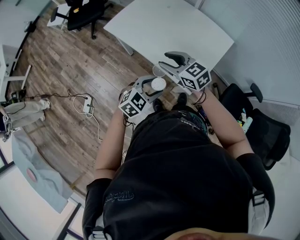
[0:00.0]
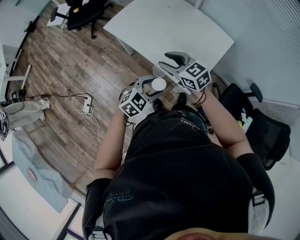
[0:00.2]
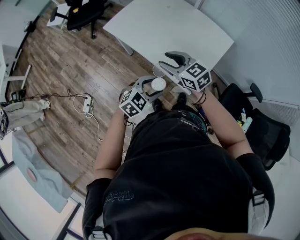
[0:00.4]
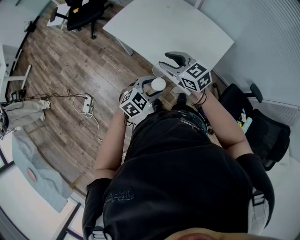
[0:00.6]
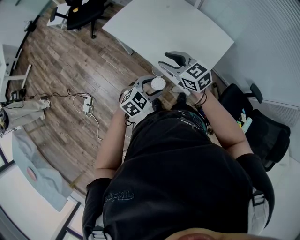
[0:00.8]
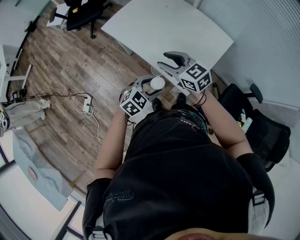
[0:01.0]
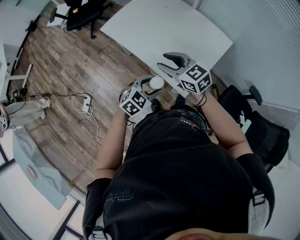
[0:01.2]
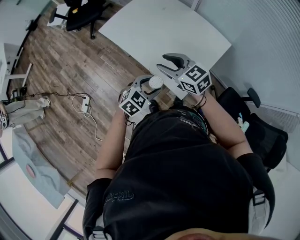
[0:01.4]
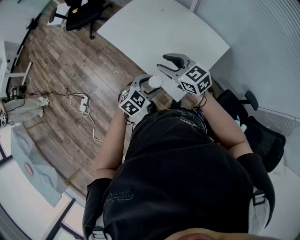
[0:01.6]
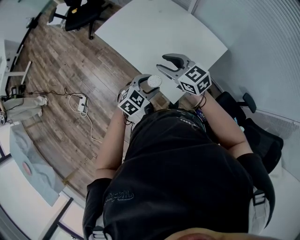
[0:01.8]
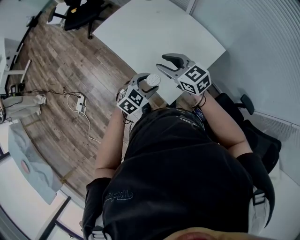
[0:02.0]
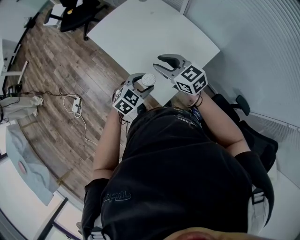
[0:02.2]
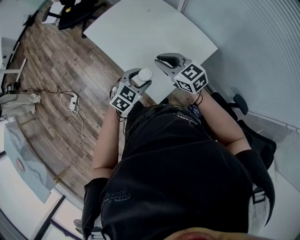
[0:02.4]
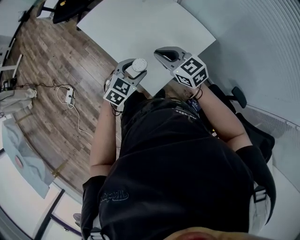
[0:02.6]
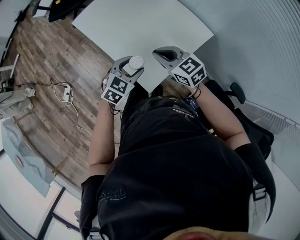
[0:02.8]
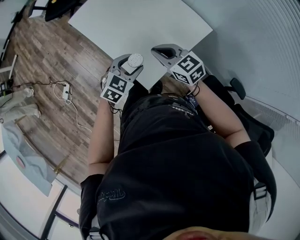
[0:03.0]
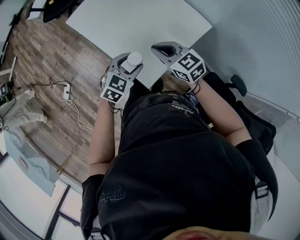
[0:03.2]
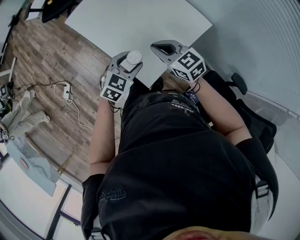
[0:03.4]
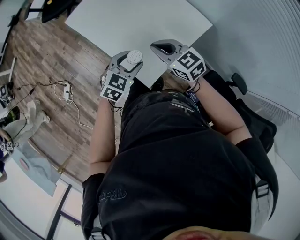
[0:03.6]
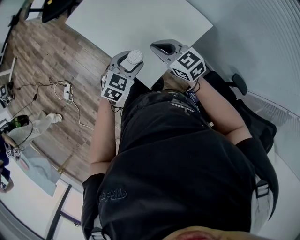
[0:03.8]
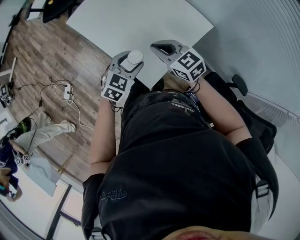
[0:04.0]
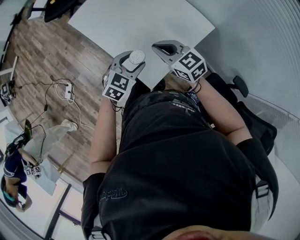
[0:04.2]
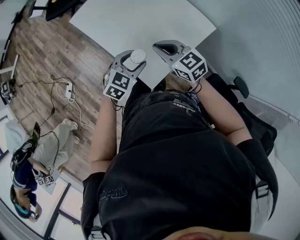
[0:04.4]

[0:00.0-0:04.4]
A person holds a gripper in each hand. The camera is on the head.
0:00.0 to 0:01.4: The left gripper ends up some 5 cm from where it was; the right gripper ends up some 5 cm from where it was.
0:01.4 to 0:03.0: The left gripper goes about 10 cm to the right and forward. The right gripper is displaced to the right by approximately 15 cm, and closes.
0:03.0 to 0:04.4: The grippers stay close to where they were, moving slightly.

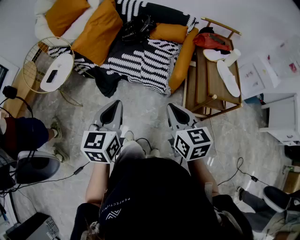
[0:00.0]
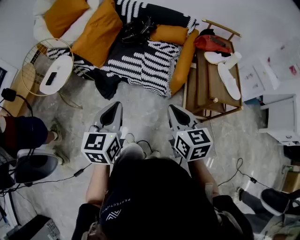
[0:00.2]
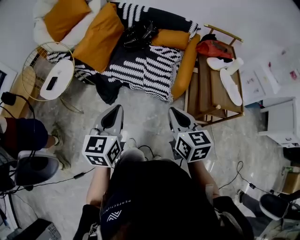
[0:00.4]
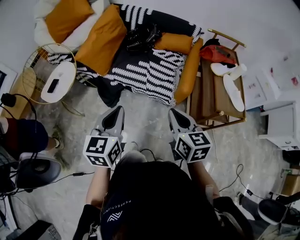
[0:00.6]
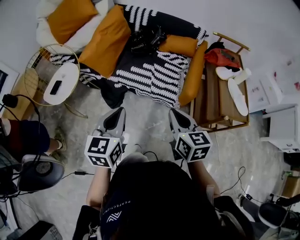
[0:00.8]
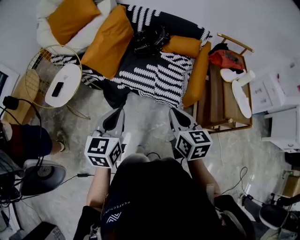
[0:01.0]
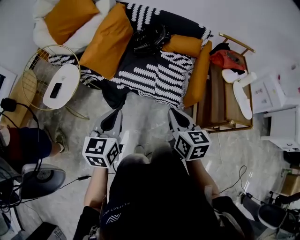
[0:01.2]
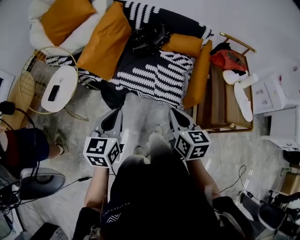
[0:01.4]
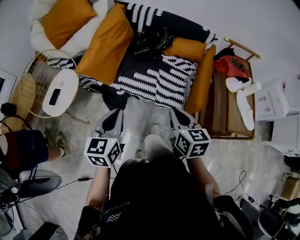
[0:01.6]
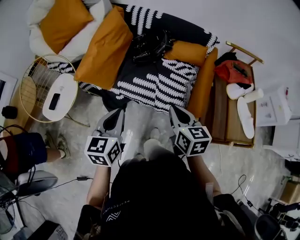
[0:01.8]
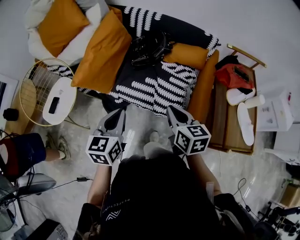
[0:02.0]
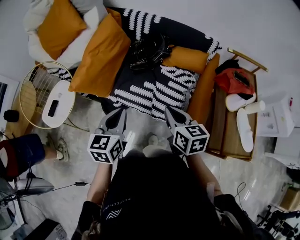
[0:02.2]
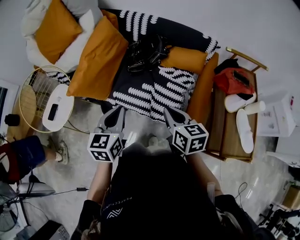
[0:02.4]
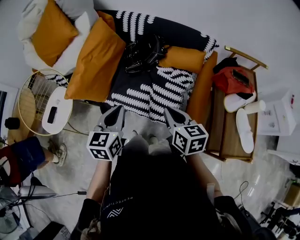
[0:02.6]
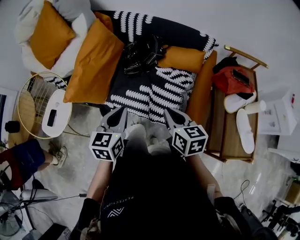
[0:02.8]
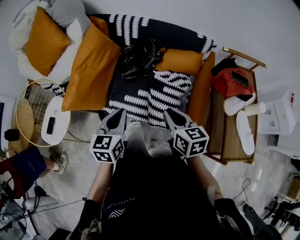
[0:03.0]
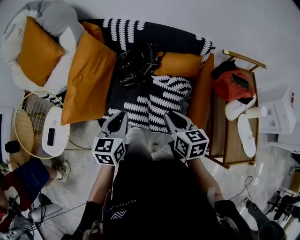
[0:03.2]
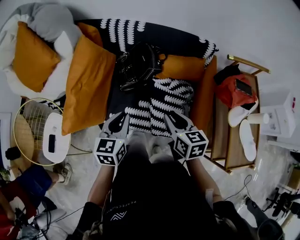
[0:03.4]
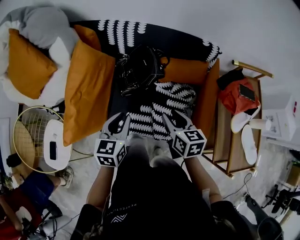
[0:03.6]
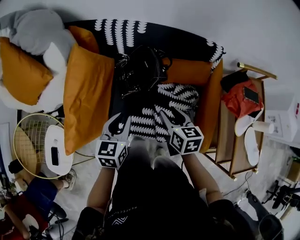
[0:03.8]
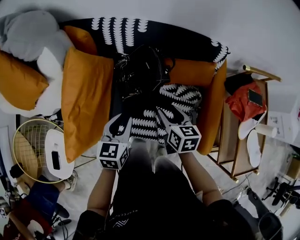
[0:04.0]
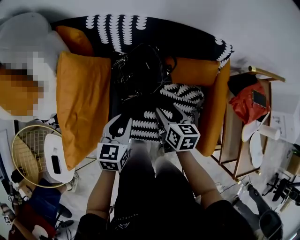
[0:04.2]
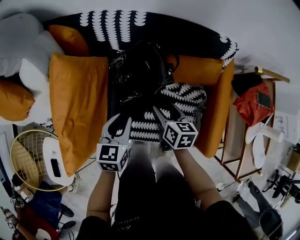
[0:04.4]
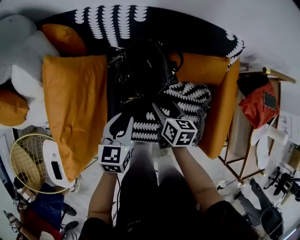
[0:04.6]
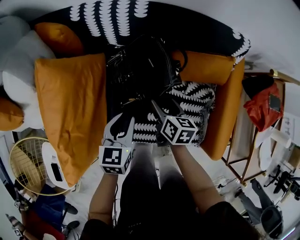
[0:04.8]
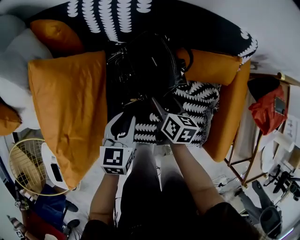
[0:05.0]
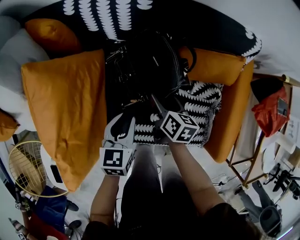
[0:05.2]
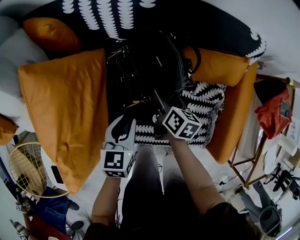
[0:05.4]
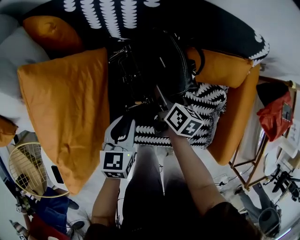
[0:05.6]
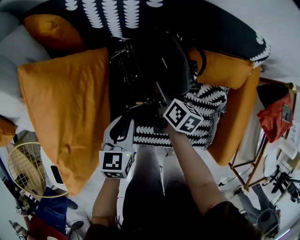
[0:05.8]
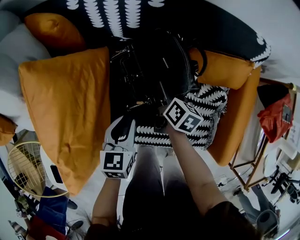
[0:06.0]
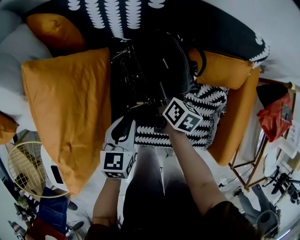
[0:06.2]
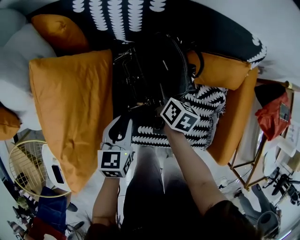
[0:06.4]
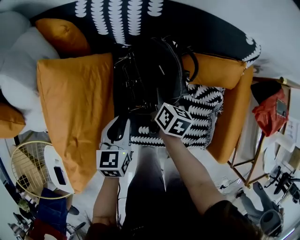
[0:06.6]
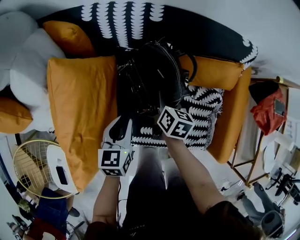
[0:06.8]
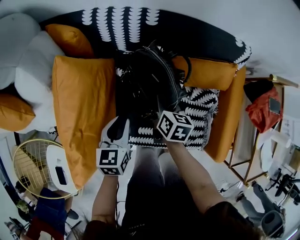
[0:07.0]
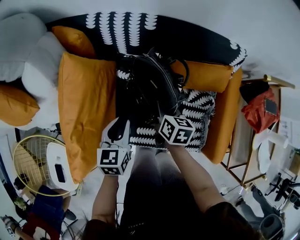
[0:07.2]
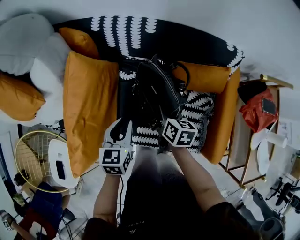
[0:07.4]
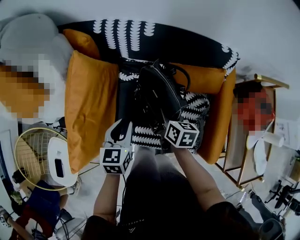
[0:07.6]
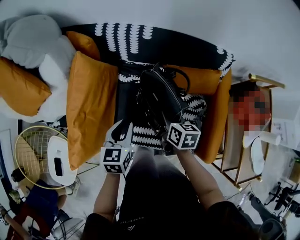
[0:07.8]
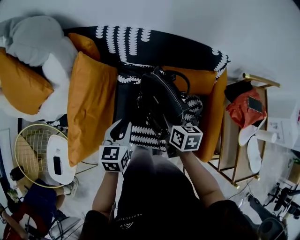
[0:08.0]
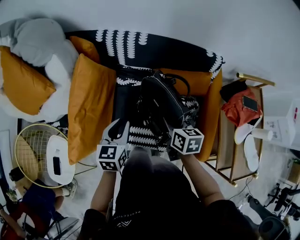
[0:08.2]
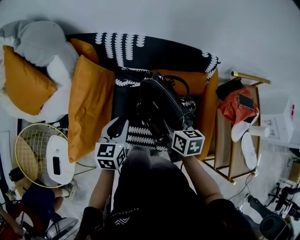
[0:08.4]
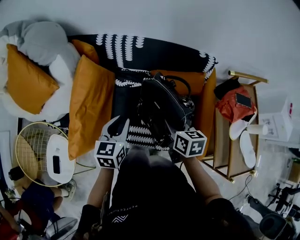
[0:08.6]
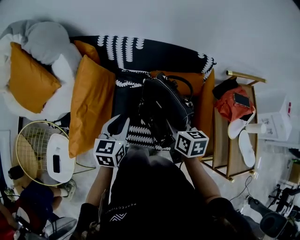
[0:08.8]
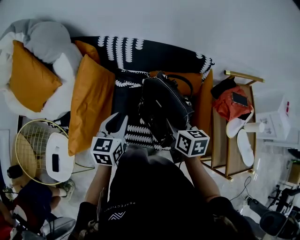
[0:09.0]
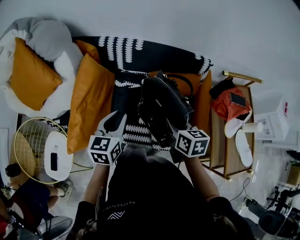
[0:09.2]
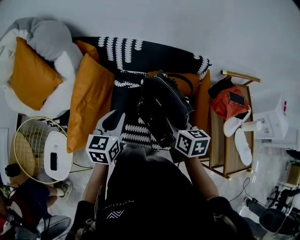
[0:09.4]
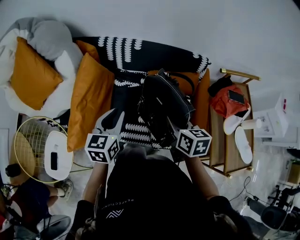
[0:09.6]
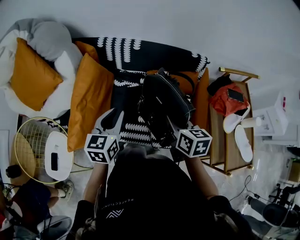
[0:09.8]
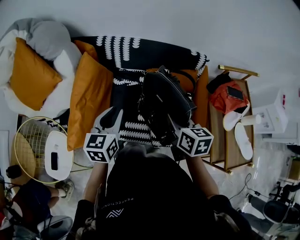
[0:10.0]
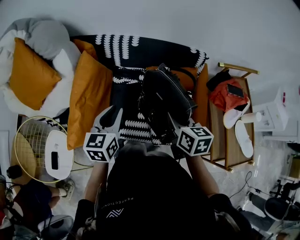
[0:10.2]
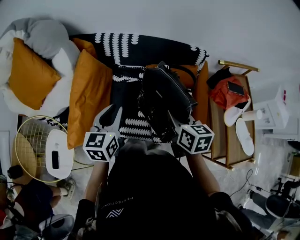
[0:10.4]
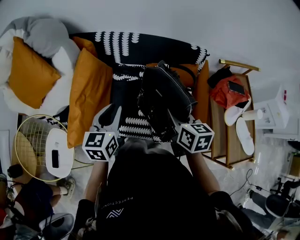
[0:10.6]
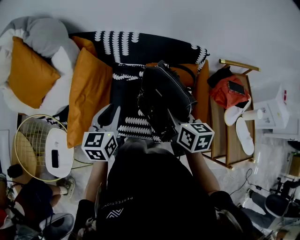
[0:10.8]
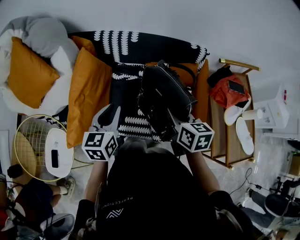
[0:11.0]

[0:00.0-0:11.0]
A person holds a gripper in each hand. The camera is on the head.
0:00.0 to 0:01.6: The two grippers go roughly 25 cm forward and to the left.
0:01.6 to 0:03.2: The left gripper travels forward and to the right by some 25 cm. The right gripper is displaced forward by roughly 20 cm.
0:03.2 to 0:04.8: Both grippers travel together forward and downward, roughly 30 cm. The right gripper swivels some 30 degrees, and opens.
0:04.8 to 0:06.2: The left gripper moves downward, some 5 cm. The right gripper heads forward and downward, covering roughly 10 cm.
0:06.2 to 0:07.8: The right gripper heads upward and backward, covering roughly 20 cm, swivels roughly 20 degrees, and closes its fingers; the left gripper is displaced upward by some 15 cm.
0:07.8 to 0:09.4: The right gripper goes approximately 20 cm upward and backward. Meanwhile the left gripper shifts some 15 cm upward.
0:09.4 to 0:11.0: The grippers stay close to where they were, moving slightly.

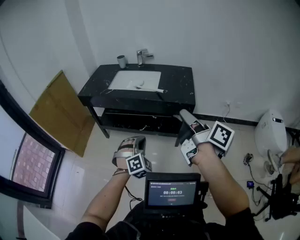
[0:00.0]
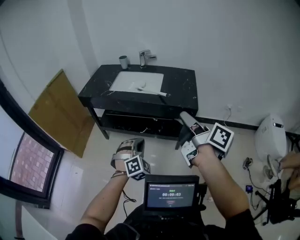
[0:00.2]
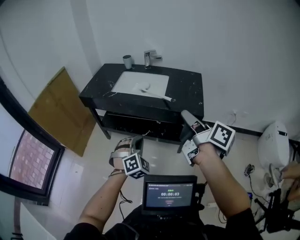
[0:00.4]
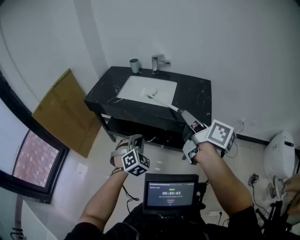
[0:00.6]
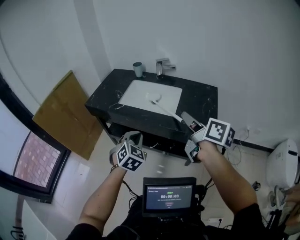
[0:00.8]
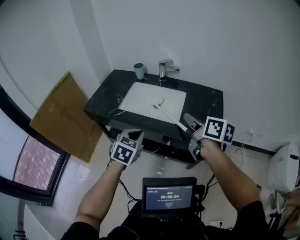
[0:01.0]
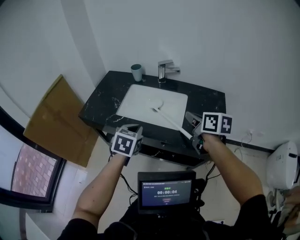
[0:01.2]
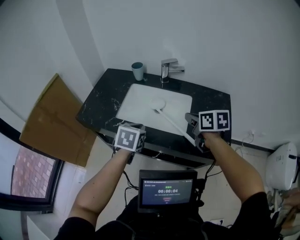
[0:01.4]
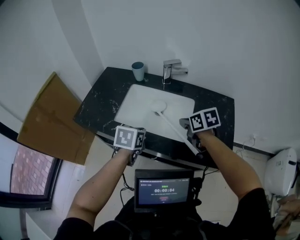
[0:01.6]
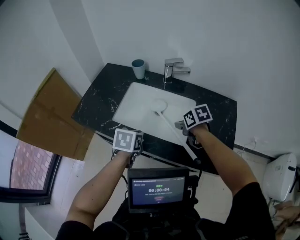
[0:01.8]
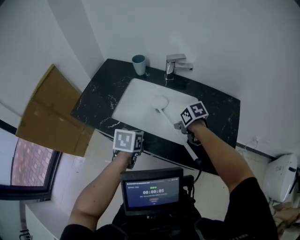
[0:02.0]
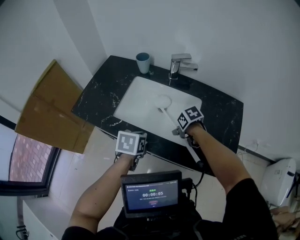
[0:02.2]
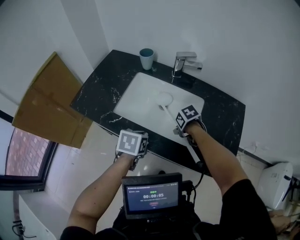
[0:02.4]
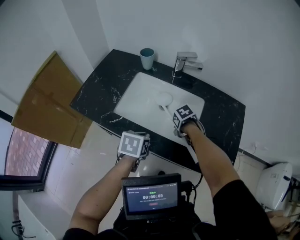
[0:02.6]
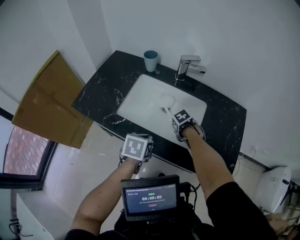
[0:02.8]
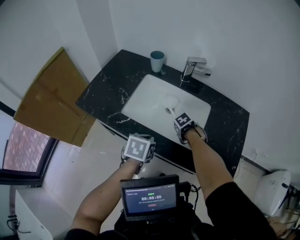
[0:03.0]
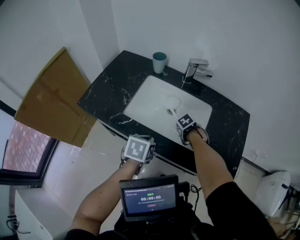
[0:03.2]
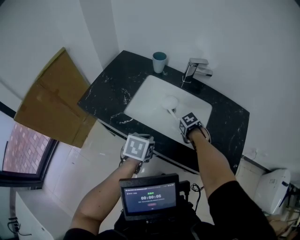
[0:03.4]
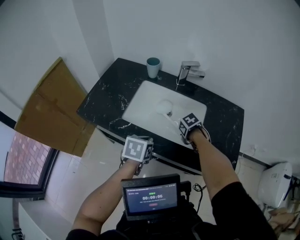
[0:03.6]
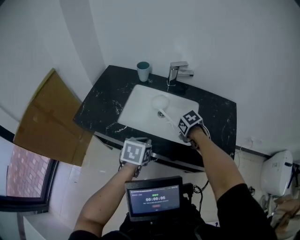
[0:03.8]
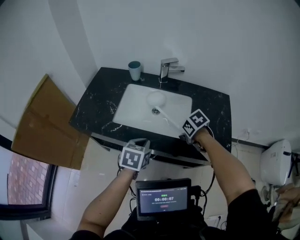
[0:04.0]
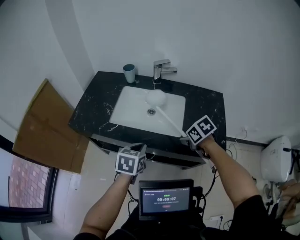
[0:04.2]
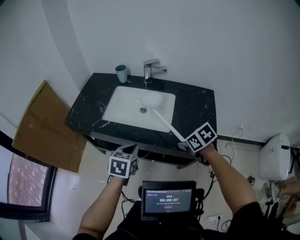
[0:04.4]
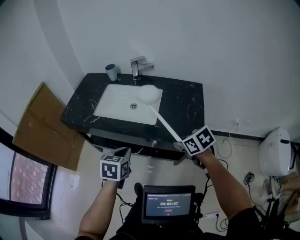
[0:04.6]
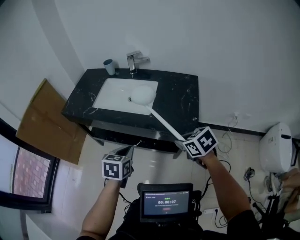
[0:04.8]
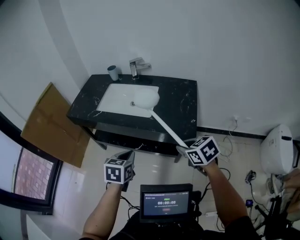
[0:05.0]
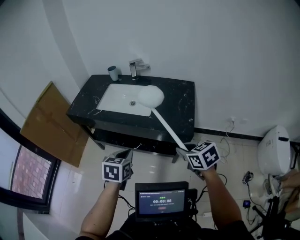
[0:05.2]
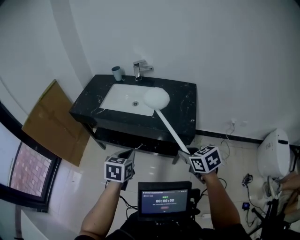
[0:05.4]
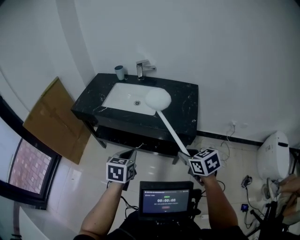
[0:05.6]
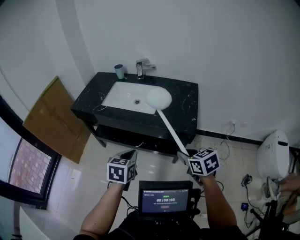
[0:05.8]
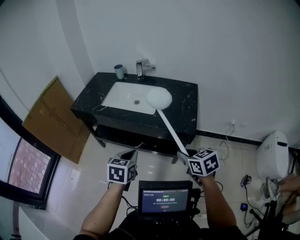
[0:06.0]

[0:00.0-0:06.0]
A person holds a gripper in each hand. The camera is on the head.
0:00.0 to 0:01.6: The two grippers travel together, forward, some 60 cm. The left gripper twists approximately 70 degrees counterclockwise, seen from behind. The right gripper tips its fingers downward by about 60 degrees.
0:01.6 to 0:03.0: The right gripper goes approximately 20 cm downward, points its fingers roughly 40 degrees further downward, and opens and closes again. Meanwhile the left gripper heads downward, covering some 5 cm.
0:03.0 to 0:04.4: The left gripper ends up some 20 cm from where it was; the right gripper shifts by approximately 30 cm, and swivels approximately 40 degrees.
0:04.4 to 0:06.0: Both grippers move backward, roughly 30 cm. The right gripper changes its angle by some 20 degrees.

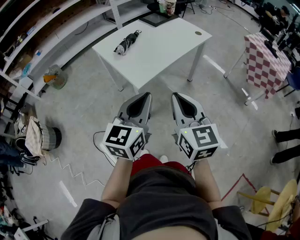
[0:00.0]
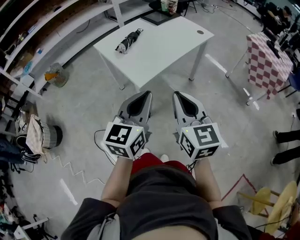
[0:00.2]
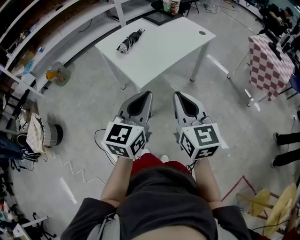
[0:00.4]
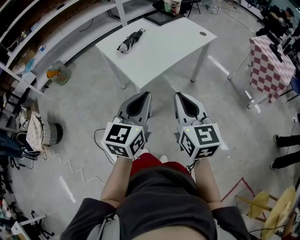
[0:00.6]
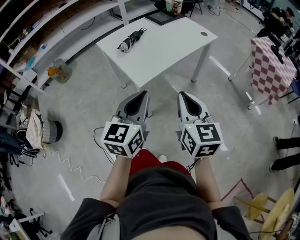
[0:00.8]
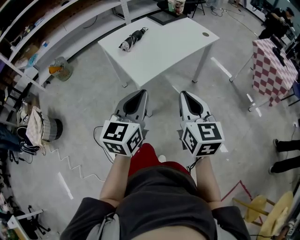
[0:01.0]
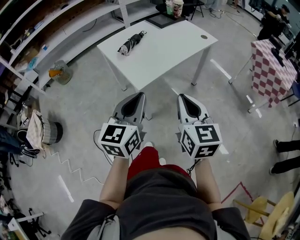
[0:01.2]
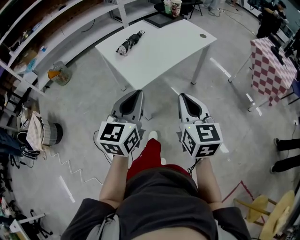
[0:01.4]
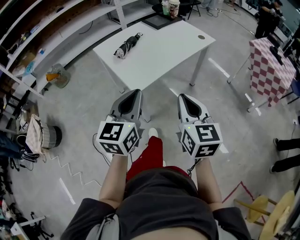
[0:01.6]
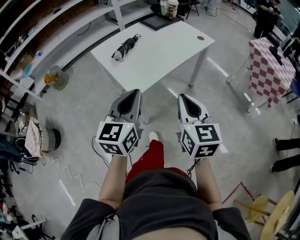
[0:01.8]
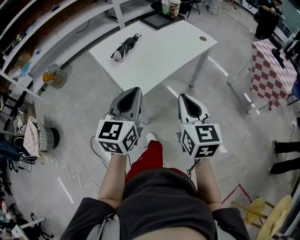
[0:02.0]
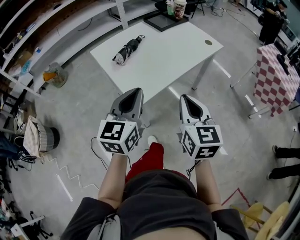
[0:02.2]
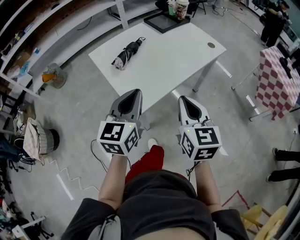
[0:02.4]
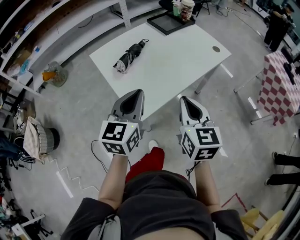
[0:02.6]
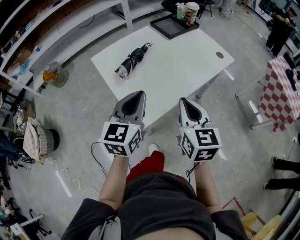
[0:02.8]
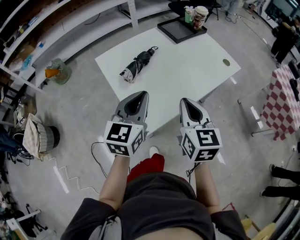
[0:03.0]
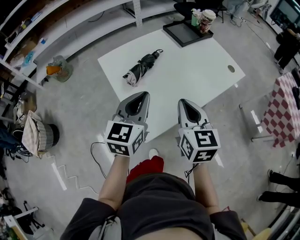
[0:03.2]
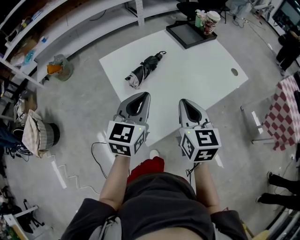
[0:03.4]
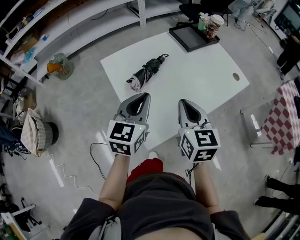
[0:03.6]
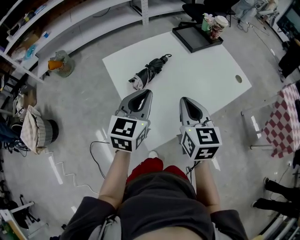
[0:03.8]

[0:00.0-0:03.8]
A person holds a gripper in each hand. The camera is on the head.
0:00.0 to 0:01.2: The grippers make only small movements.
0:01.2 to 0:02.6: The grippers both shift forward by about 25 cm.
0:02.6 to 0:03.8: The grippers both shift forward and to the left by about 15 cm.
